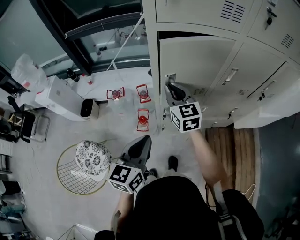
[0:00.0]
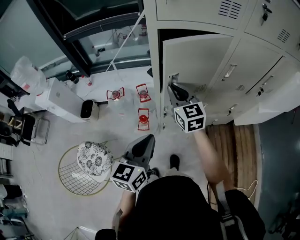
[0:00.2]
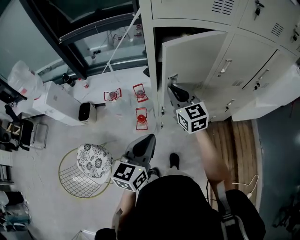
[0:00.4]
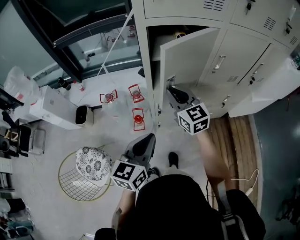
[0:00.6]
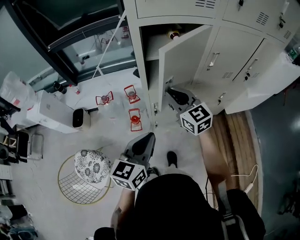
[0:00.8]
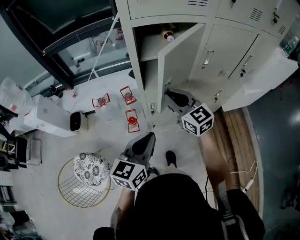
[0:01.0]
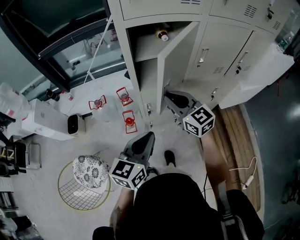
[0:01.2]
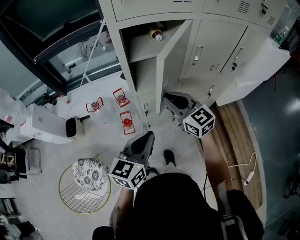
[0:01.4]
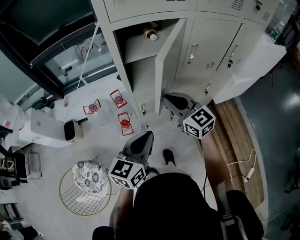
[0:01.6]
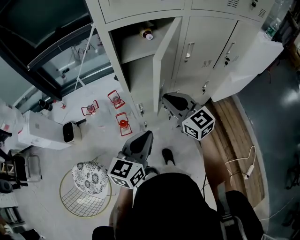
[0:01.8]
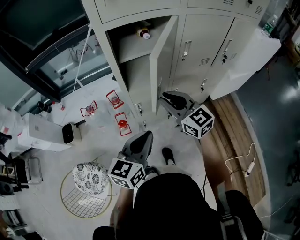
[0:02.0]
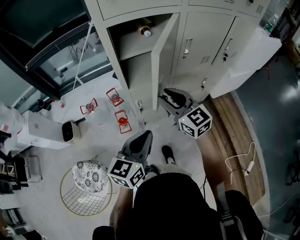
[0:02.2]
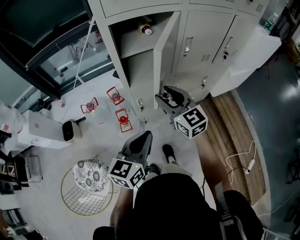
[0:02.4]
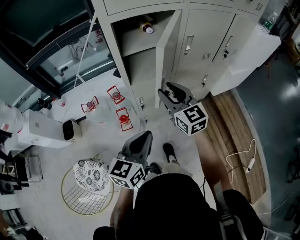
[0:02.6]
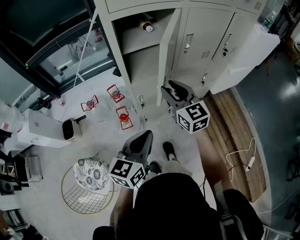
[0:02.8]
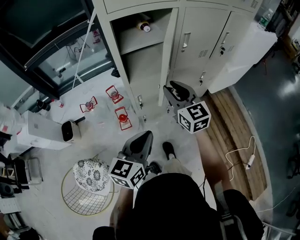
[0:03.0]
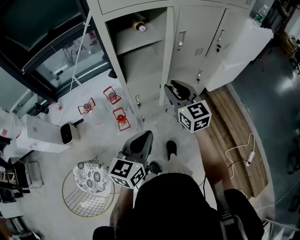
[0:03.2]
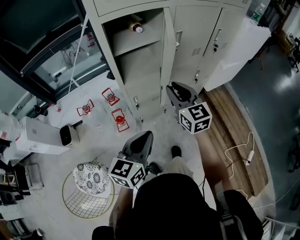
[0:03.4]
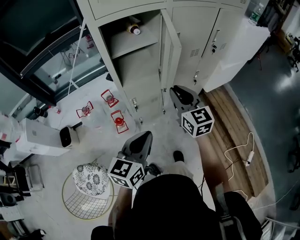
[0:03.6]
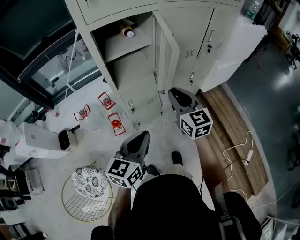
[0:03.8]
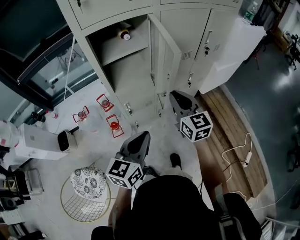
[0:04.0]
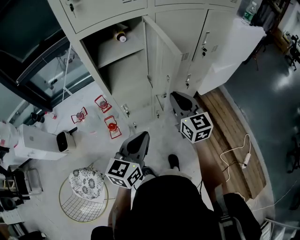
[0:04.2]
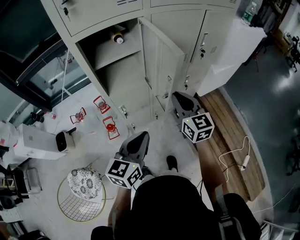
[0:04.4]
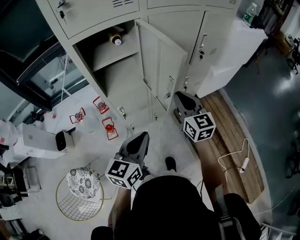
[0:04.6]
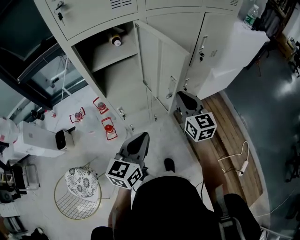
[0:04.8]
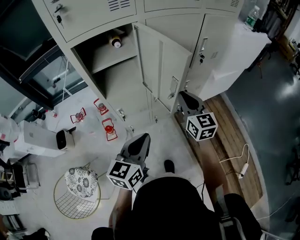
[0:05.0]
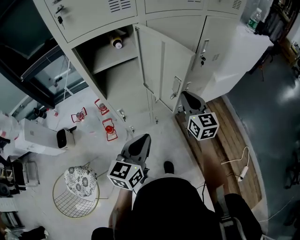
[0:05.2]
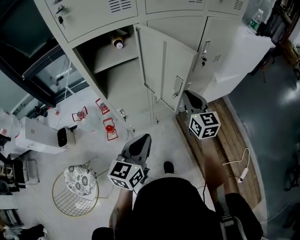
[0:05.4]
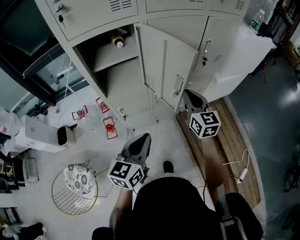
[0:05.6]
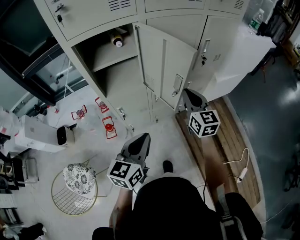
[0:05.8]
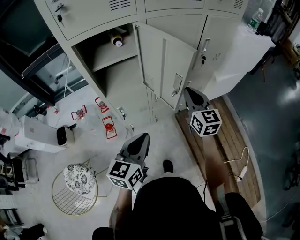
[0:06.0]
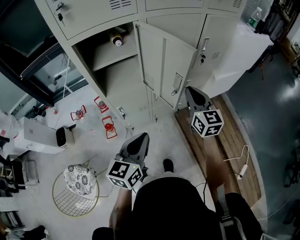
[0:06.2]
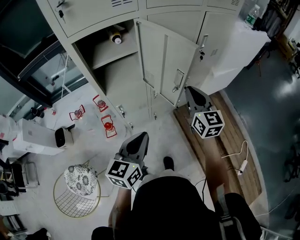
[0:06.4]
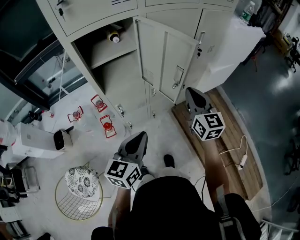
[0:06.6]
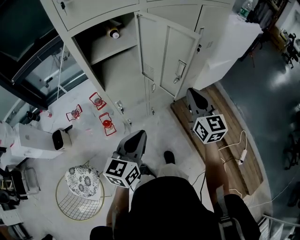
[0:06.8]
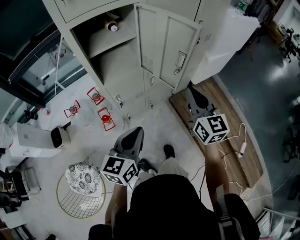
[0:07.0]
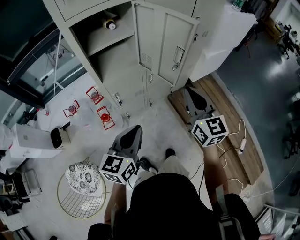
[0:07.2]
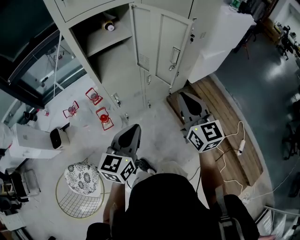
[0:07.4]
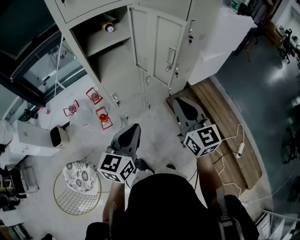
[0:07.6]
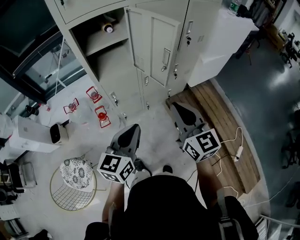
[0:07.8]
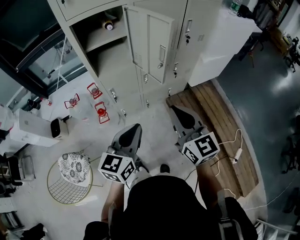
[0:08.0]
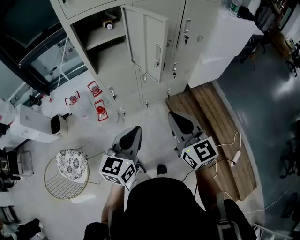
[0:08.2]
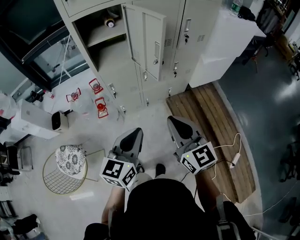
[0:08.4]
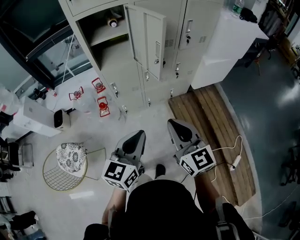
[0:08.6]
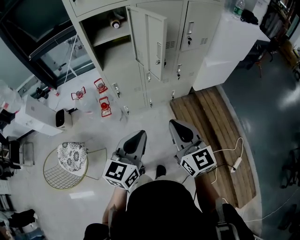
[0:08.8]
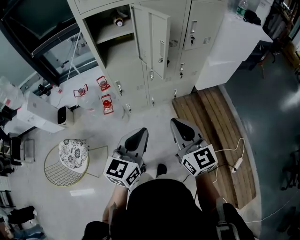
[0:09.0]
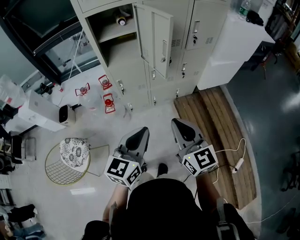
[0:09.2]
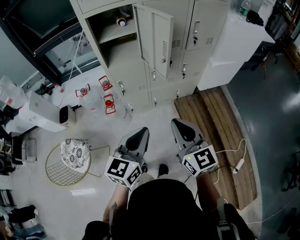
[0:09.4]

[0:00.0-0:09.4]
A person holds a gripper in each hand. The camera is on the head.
0:00.0 to 0:01.6: The right gripper is displaced backward and to the right by about 15 cm; the left gripper moves to the right, some 5 cm, and turns by about 20 degrees.
0:01.6 to 0:03.2: The right gripper swivels about 20 degrees, and opens its fingers; the left gripper goes about 5 cm backward.
0:03.2 to 0:04.8: The left gripper goes approximately 15 cm to the right and forward. The right gripper moves to the right, about 15 cm, and closes its fingers.
0:04.8 to 0:06.2: The right gripper shifts by approximately 5 cm.
0:06.2 to 0:07.8: The left gripper travels backward by roughly 10 cm. Meanwhile the right gripper travels backward by roughly 20 cm.
0:07.8 to 0:09.4: The right gripper travels backward by some 10 cm; the left gripper is displaced backward and to the right by approximately 15 cm.

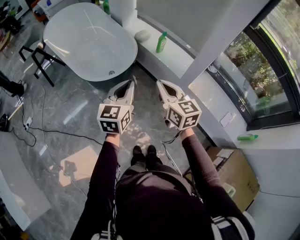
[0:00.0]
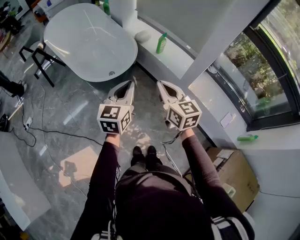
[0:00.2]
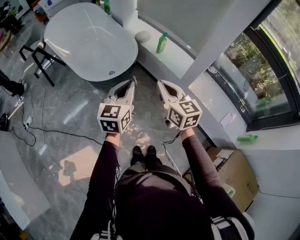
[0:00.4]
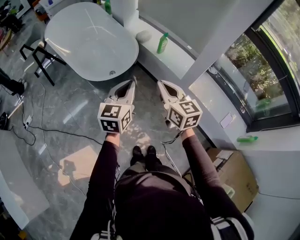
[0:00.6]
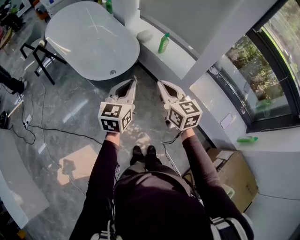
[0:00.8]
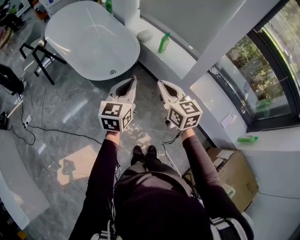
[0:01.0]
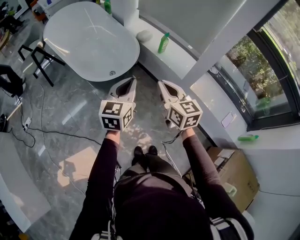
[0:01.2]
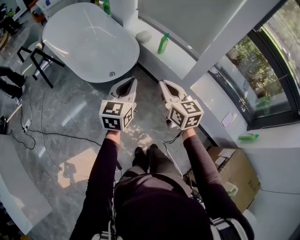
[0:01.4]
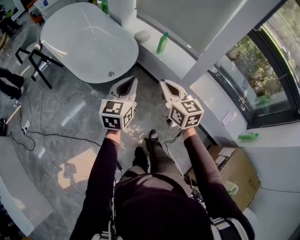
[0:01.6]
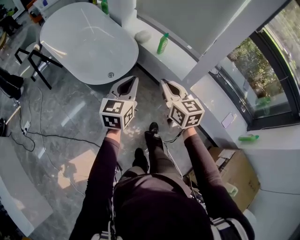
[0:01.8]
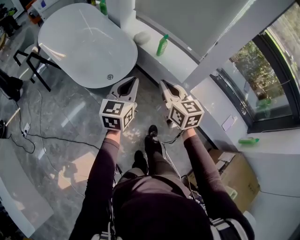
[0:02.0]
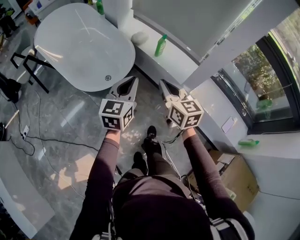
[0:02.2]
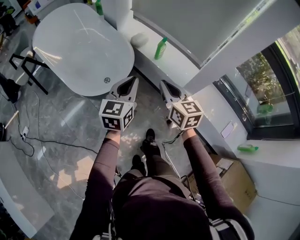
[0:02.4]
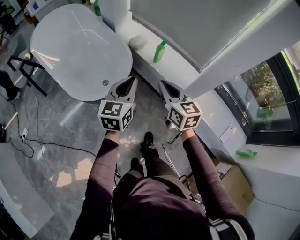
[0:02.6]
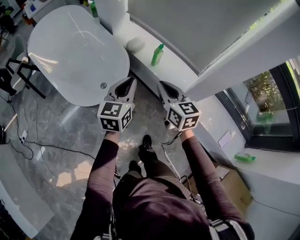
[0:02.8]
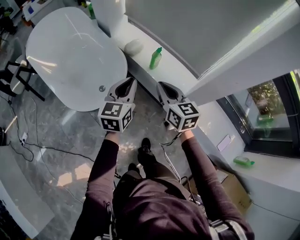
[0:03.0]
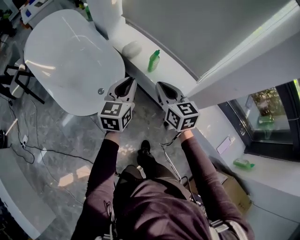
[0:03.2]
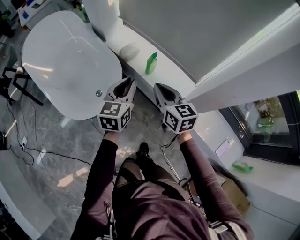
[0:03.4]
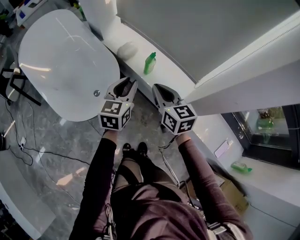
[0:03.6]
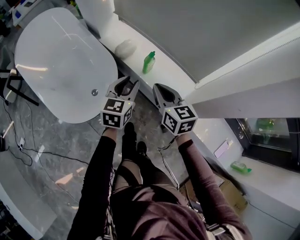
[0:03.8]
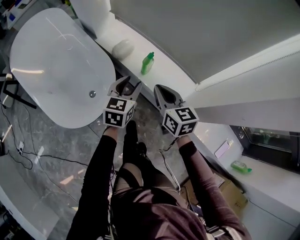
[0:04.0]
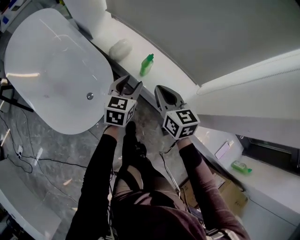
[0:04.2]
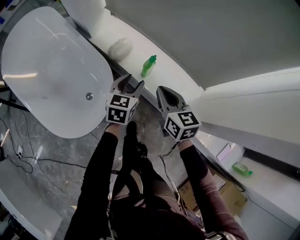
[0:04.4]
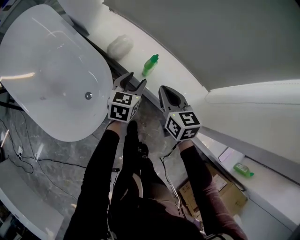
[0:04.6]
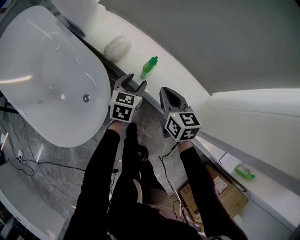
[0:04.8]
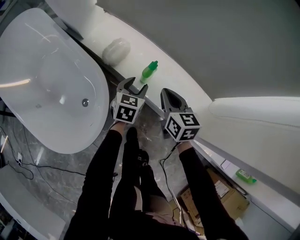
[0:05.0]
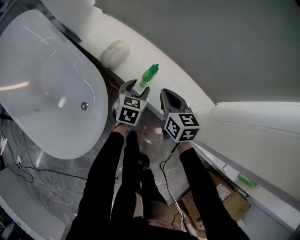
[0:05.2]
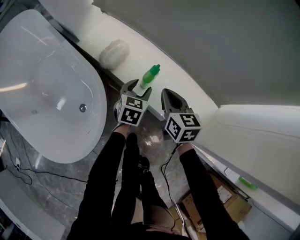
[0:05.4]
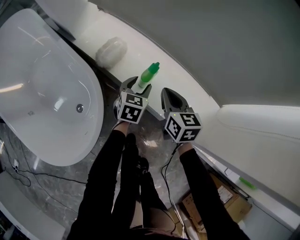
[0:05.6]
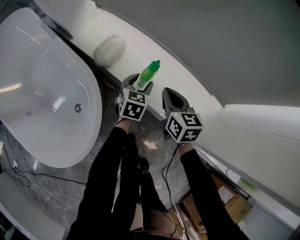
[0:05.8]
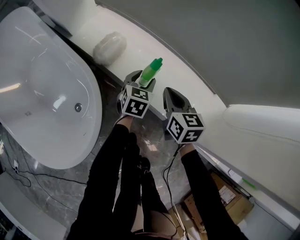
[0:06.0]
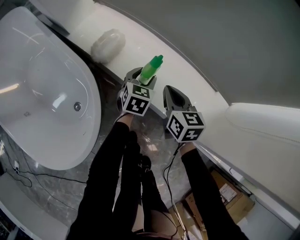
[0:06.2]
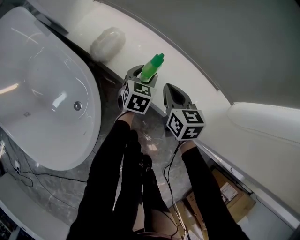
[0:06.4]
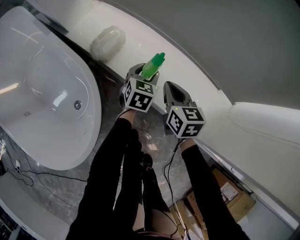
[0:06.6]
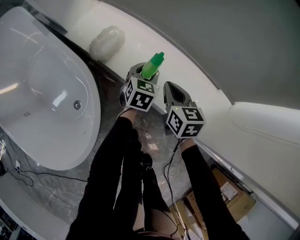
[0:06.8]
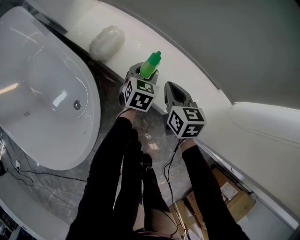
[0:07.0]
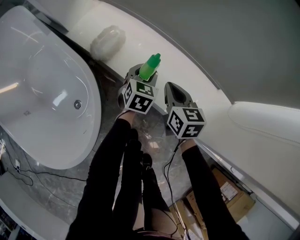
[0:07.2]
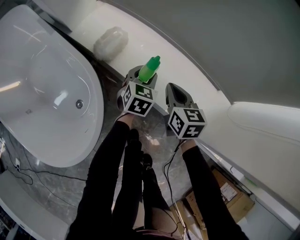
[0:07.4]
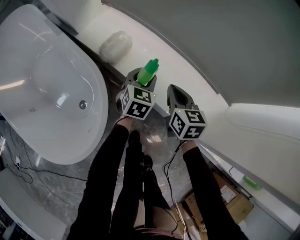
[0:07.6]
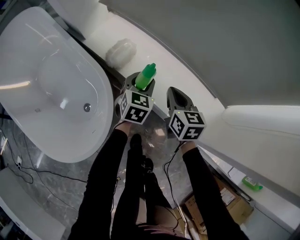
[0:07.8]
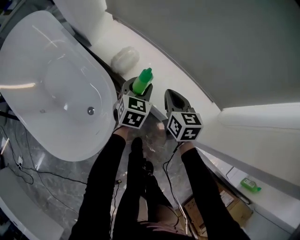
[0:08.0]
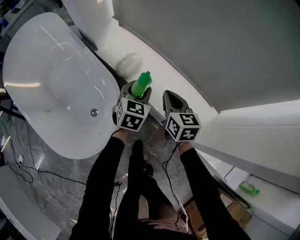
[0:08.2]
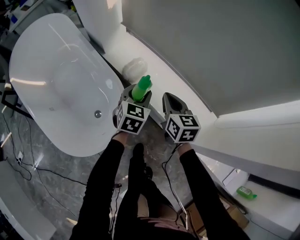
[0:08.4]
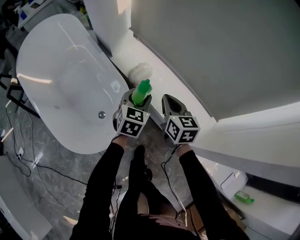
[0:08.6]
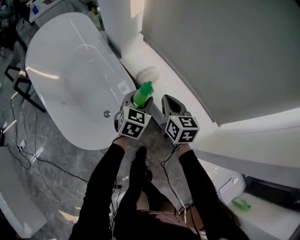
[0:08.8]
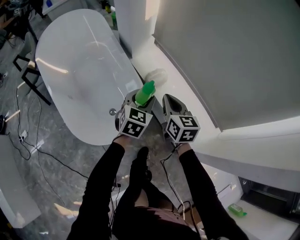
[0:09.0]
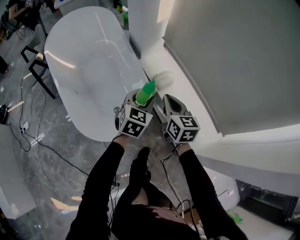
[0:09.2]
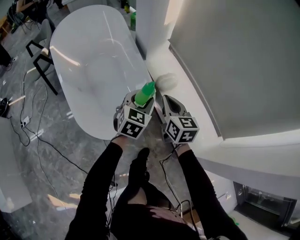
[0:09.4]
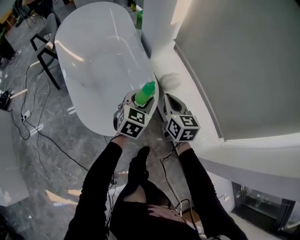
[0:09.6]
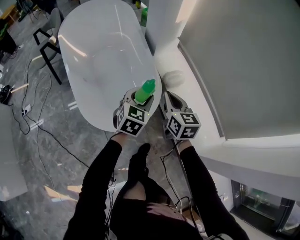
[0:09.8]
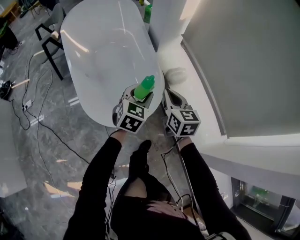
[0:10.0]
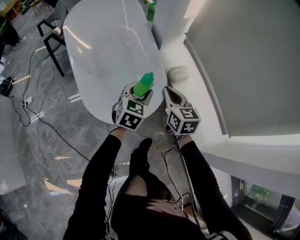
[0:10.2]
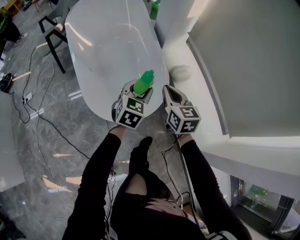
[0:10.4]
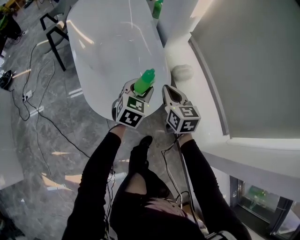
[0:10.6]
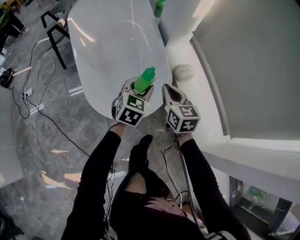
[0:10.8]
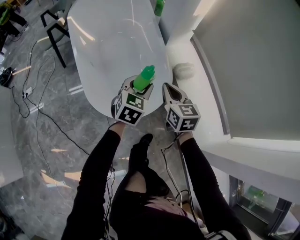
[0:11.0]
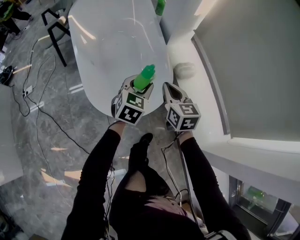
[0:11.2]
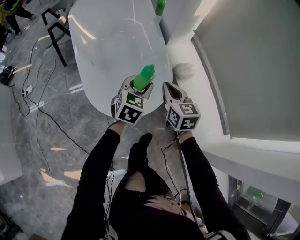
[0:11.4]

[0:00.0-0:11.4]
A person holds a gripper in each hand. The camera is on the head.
0:00.0 to 0:01.4: The grippers stay close to where they were, moving slightly.
0:01.4 to 0:02.8: Both grippers travel together forward, roughly 20 cm.
0:02.8 to 0:04.2: The right gripper shifts approximately 15 cm forward and downward. The left gripper shifts some 25 cm forward, downward and to the right, and opens its fingers.
0:04.2 to 0:05.6: Both grippers travel together downward and forward, approximately 25 cm.
0:05.6 to 0:07.2: The right gripper shifts approximately 5 cm downward.
0:07.2 to 0:08.6: Both grippers travel together upward and to the left, about 25 cm.
0:08.6 to 0:10.0: The two grippers go approximately 15 cm to the left. The right gripper turns by about 20 degrees.
0:10.0 to 0:11.4: There are only small adjustments of the grippers.

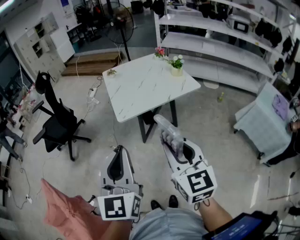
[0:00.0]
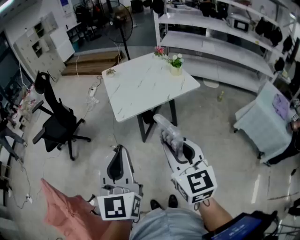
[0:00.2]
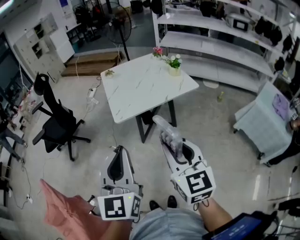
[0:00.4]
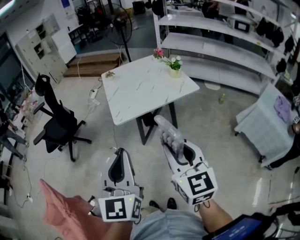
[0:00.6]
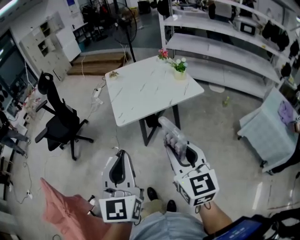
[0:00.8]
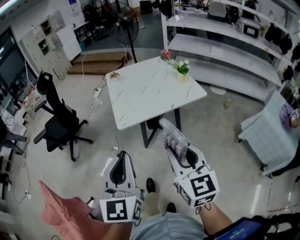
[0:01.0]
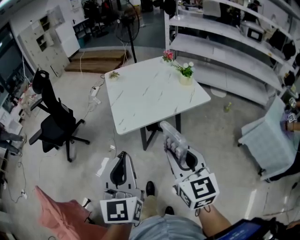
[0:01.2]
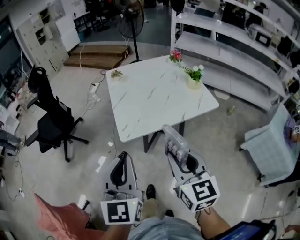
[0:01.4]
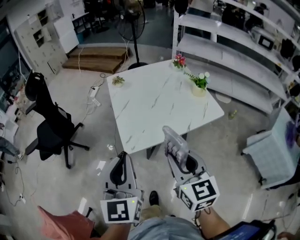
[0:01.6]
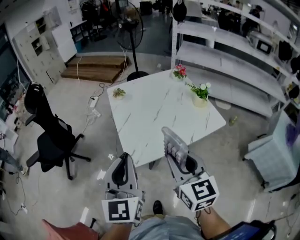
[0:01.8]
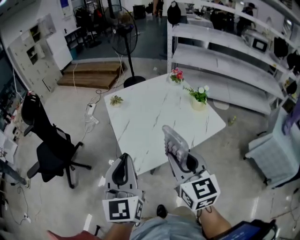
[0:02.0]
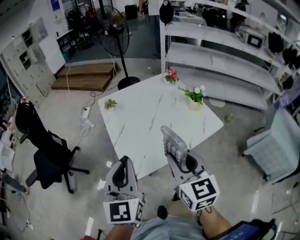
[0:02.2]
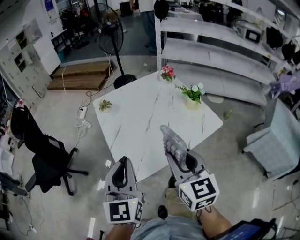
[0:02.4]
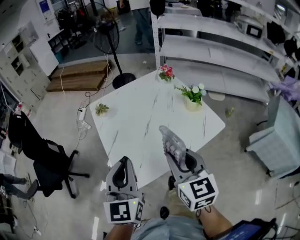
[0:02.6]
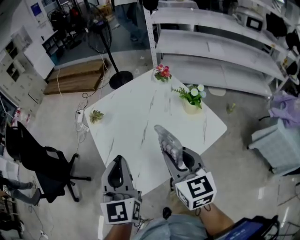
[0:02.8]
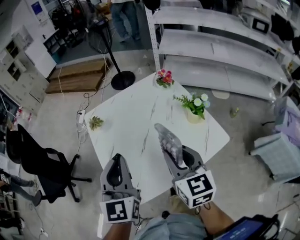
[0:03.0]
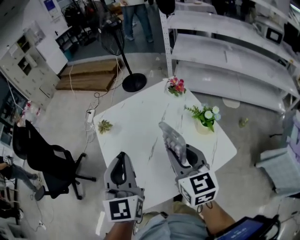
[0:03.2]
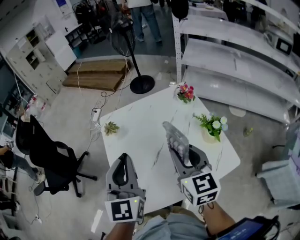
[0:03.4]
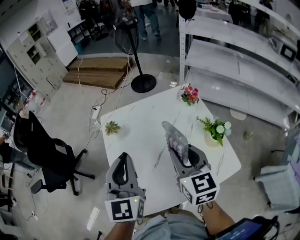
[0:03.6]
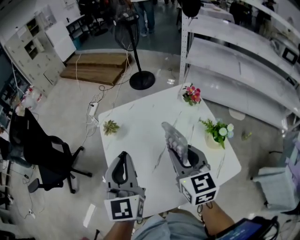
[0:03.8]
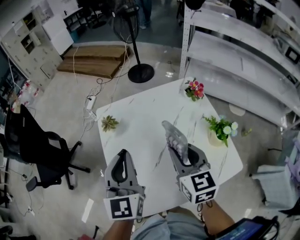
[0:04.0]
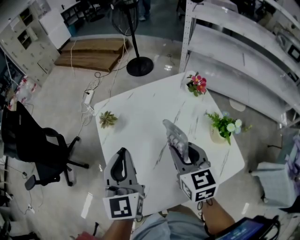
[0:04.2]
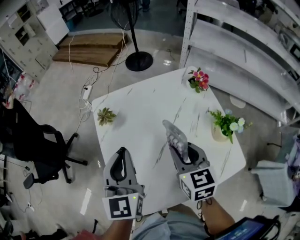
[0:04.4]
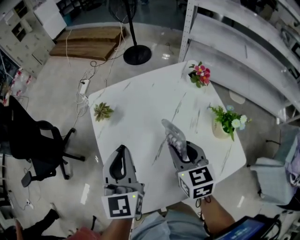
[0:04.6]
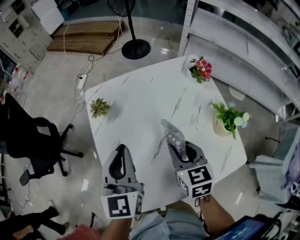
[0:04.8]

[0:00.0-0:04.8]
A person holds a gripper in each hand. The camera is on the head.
0:00.0 to 0:01.6: The two grippers go approximately 25 cm forward.
0:01.6 to 0:03.2: The two grippers go about 35 cm forward.
0:03.2 to 0:04.8: The grippers both shift downward and forward by approximately 15 cm. The right gripper rotates roughly 20 degrees.
